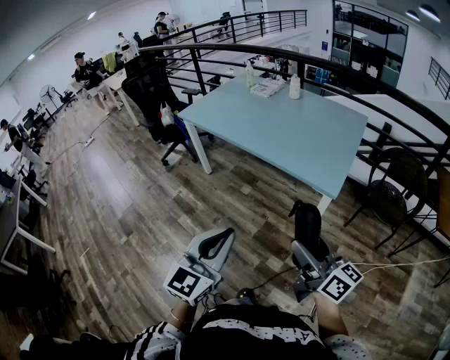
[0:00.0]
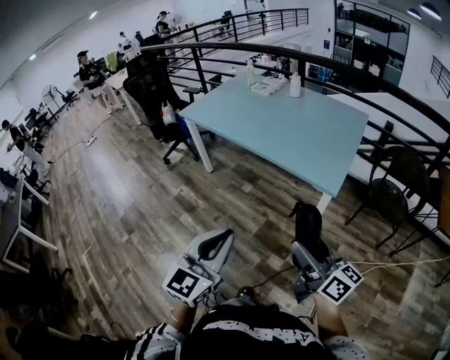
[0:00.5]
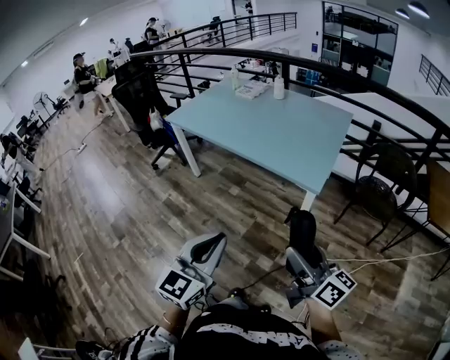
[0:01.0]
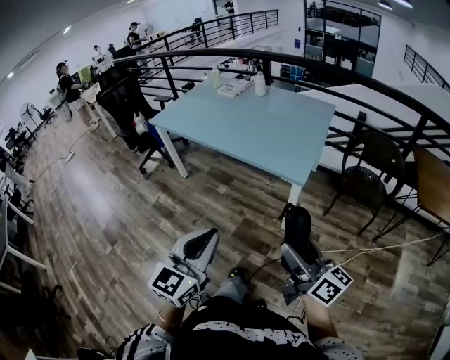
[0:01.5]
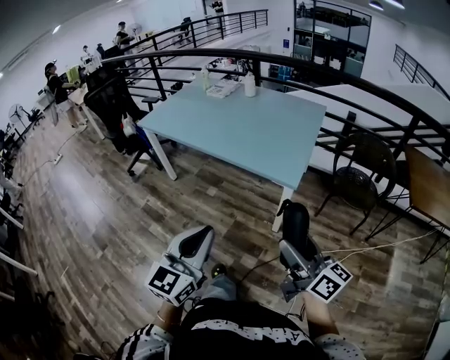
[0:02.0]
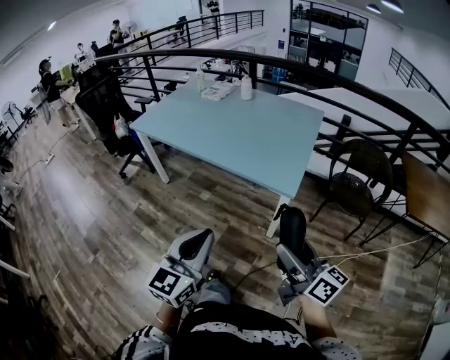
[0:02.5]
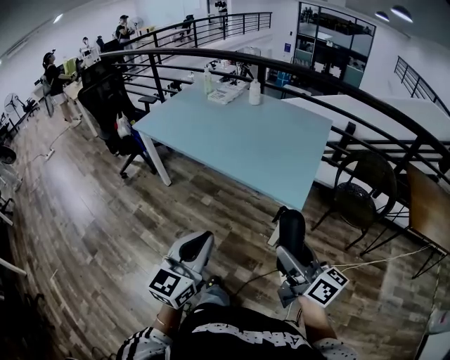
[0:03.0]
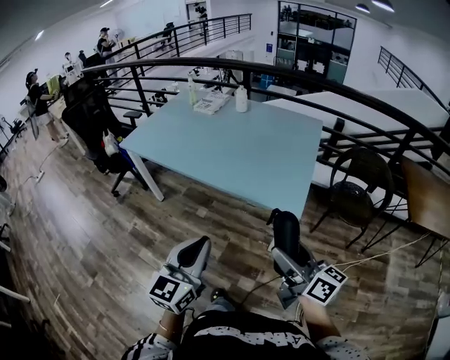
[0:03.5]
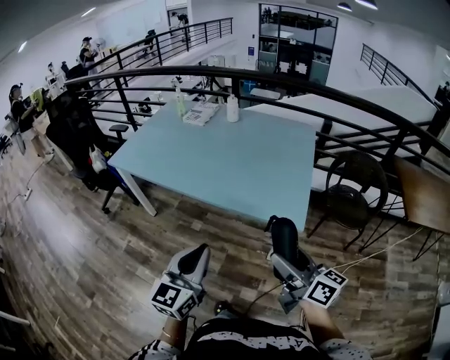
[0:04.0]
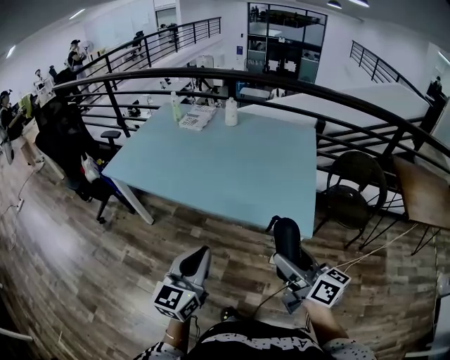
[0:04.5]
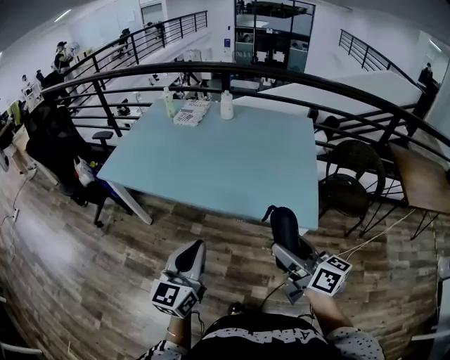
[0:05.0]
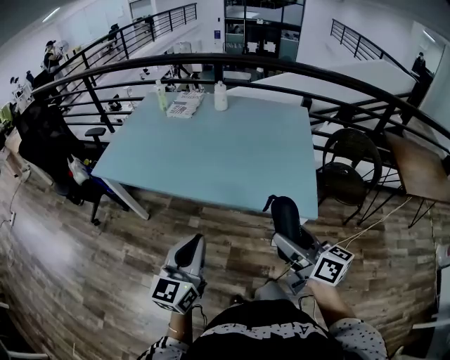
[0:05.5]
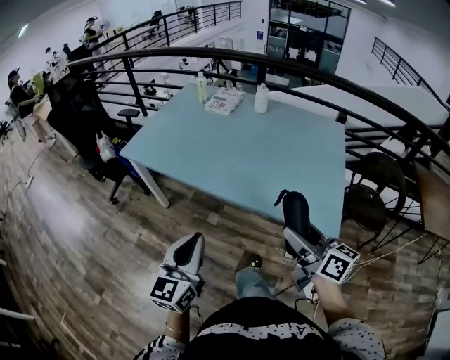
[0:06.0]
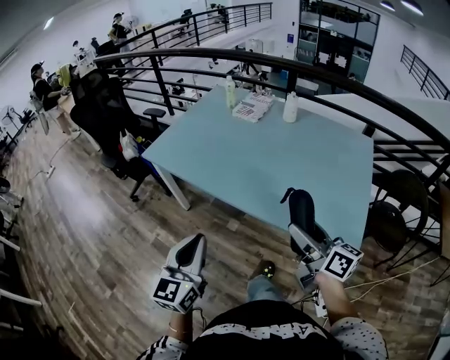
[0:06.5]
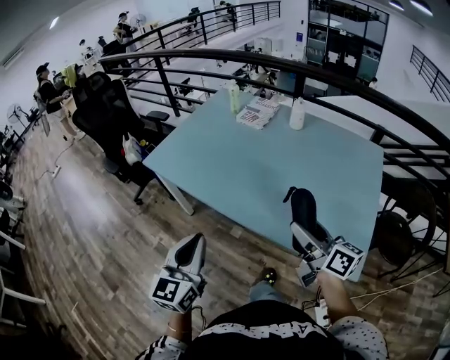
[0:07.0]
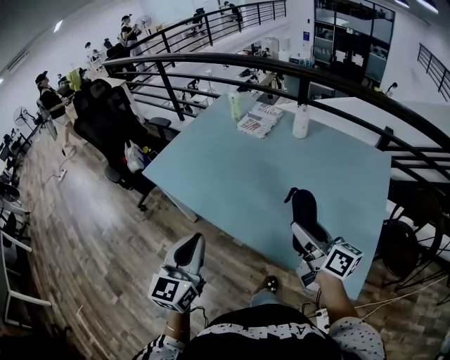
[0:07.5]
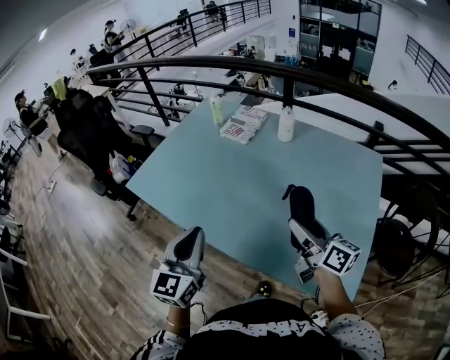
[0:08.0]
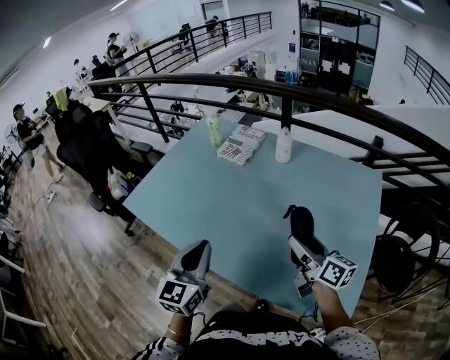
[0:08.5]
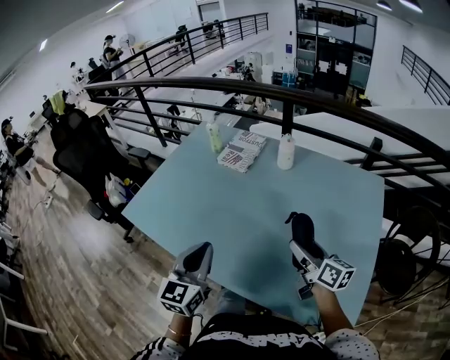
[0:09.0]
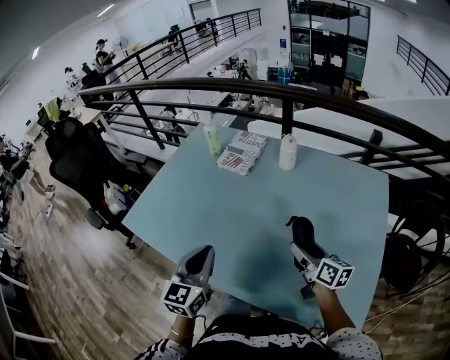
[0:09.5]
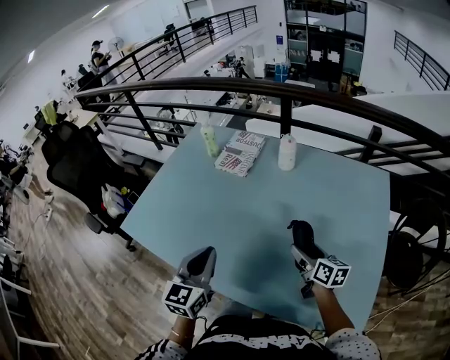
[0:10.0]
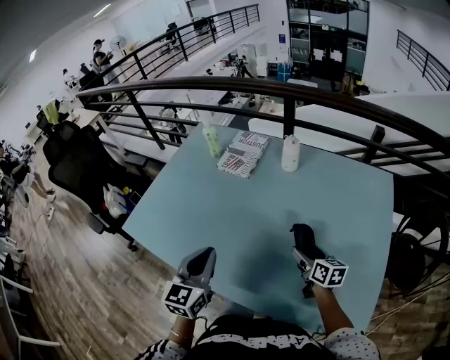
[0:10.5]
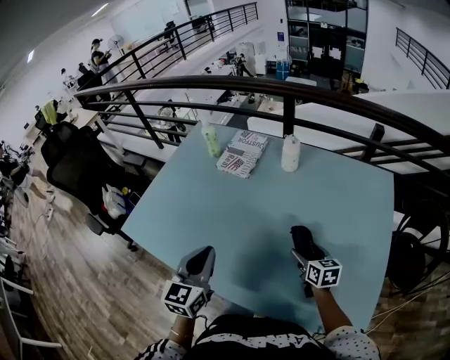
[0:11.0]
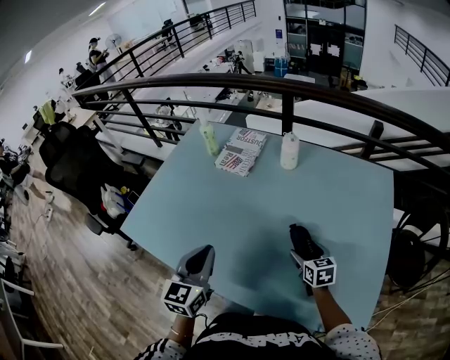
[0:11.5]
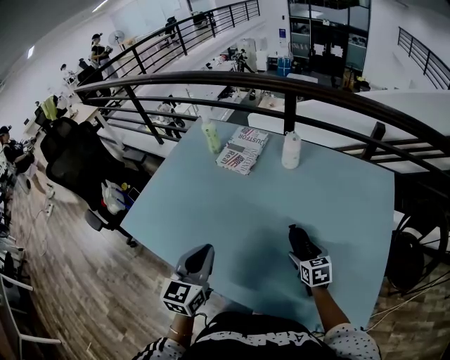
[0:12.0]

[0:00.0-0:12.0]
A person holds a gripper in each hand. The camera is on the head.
0:00.0 to 0:02.0: Both grippers move to the right, some 10 cm.
0:02.0 to 0:04.0: The right gripper goes roughly 25 cm forward and to the left. The left gripper moves forward, roughly 25 cm.
0:04.0 to 0:06.0: The left gripper is displaced to the left and forward by some 20 cm. The right gripper shifts some 20 cm forward and to the left.
0:06.0 to 0:08.0: The two grippers go about 30 cm forward.
0:08.0 to 0:10.0: The right gripper travels downward and forward by about 20 cm, and rotates some 20 degrees, while the left gripper heads forward, covering about 15 cm.
0:10.0 to 0:12.0: The right gripper goes some 10 cm downward, and rotates roughly 40 degrees.

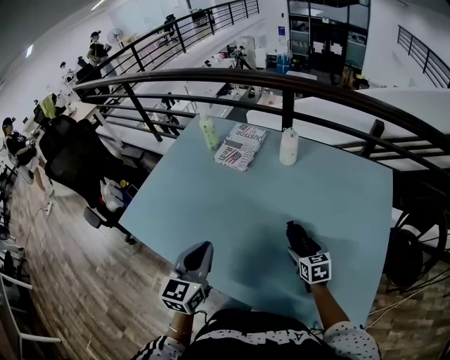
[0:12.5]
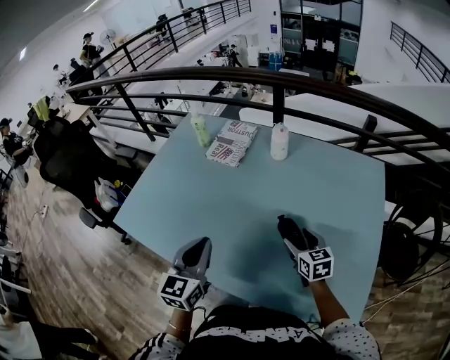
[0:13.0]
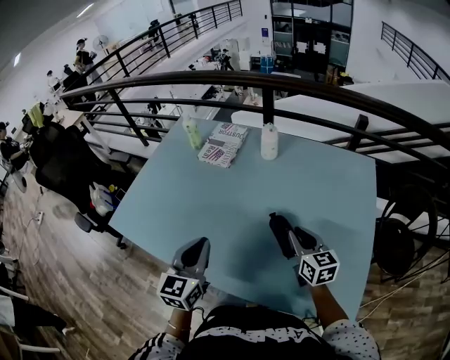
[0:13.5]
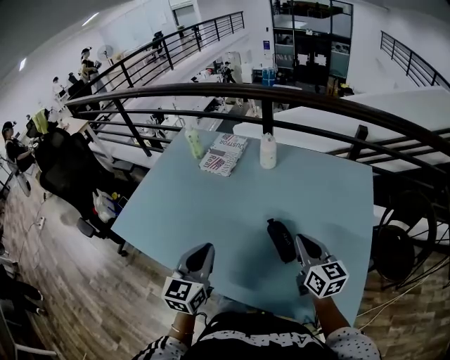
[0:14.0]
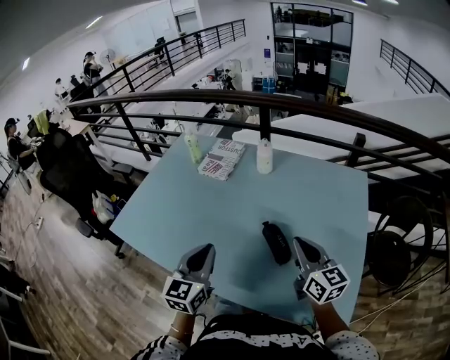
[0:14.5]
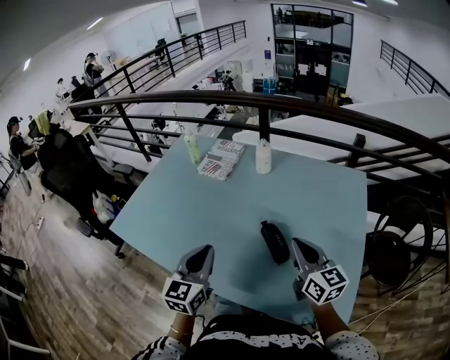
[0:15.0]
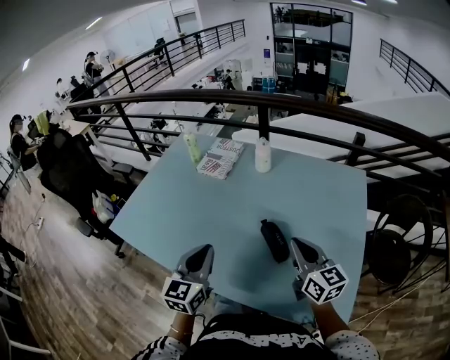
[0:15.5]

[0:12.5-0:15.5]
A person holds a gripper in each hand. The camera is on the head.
0:12.5 to 0:14.0: The left gripper moves to the right, some 5 cm, while the right gripper moves upward, about 20 cm, tilts its fingers roughly 30 degrees upward, and closes its fingers.
0:14.0 to 0:15.5: The right gripper moves some 5 cm.

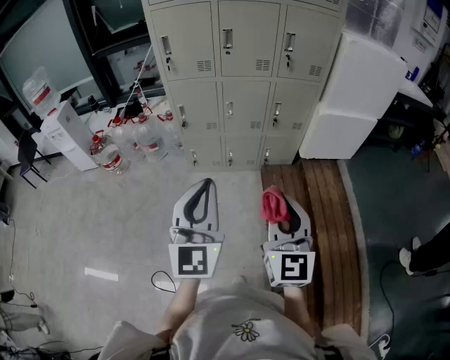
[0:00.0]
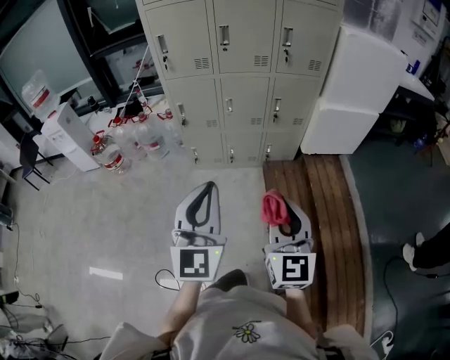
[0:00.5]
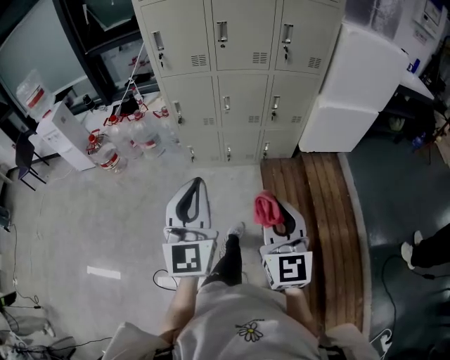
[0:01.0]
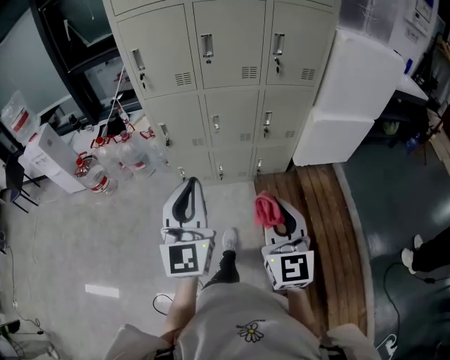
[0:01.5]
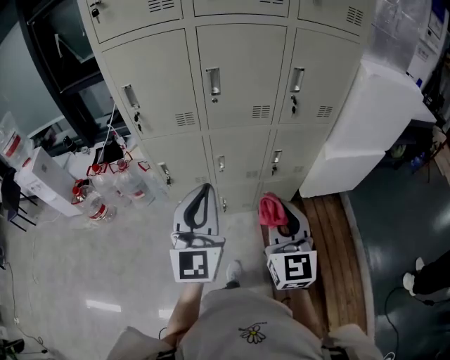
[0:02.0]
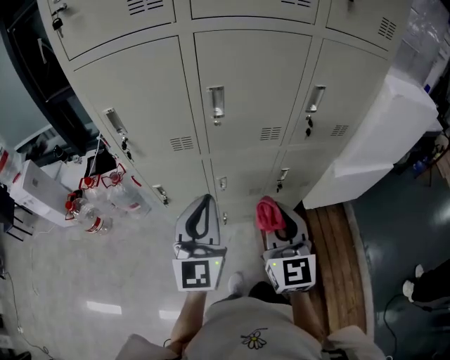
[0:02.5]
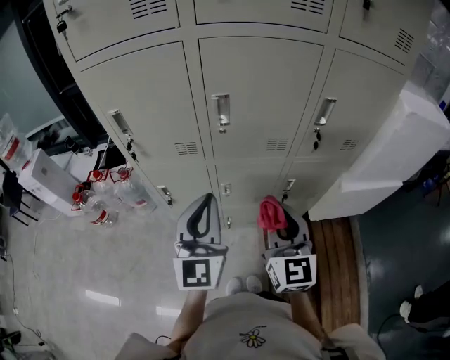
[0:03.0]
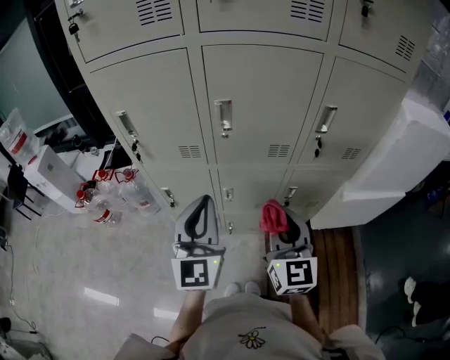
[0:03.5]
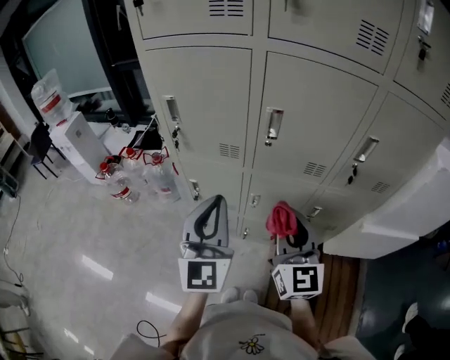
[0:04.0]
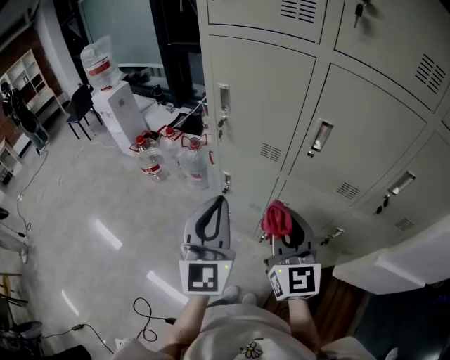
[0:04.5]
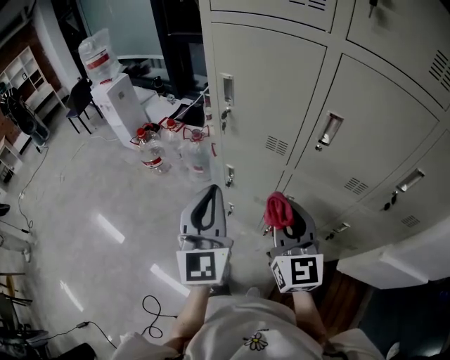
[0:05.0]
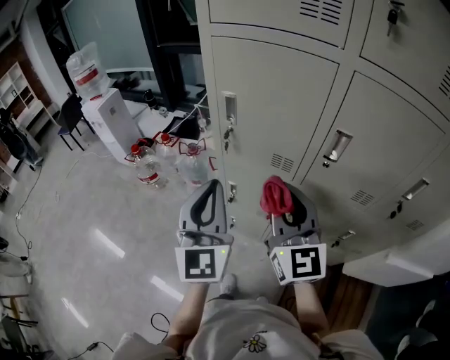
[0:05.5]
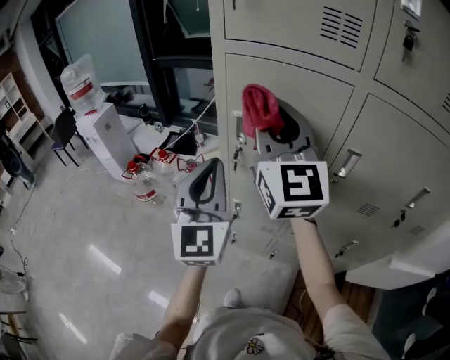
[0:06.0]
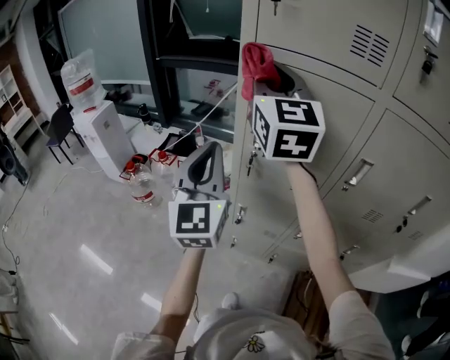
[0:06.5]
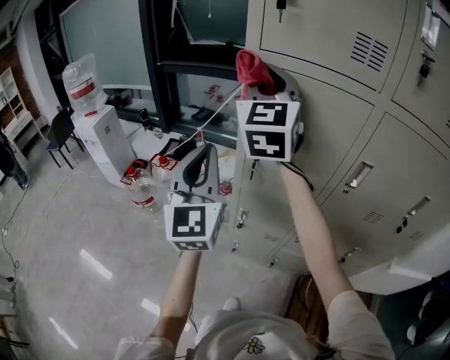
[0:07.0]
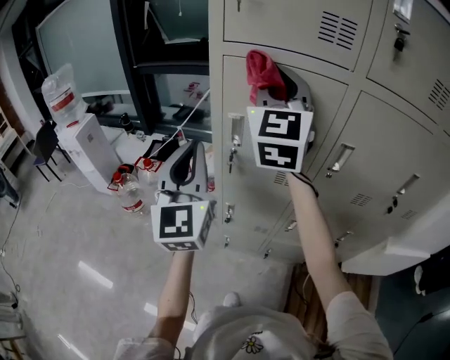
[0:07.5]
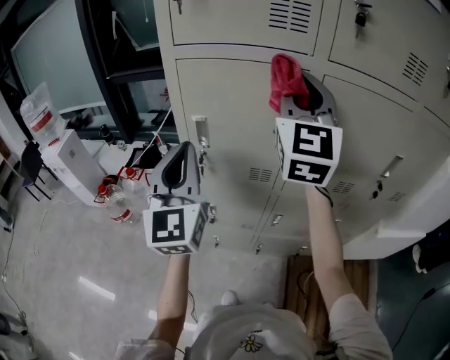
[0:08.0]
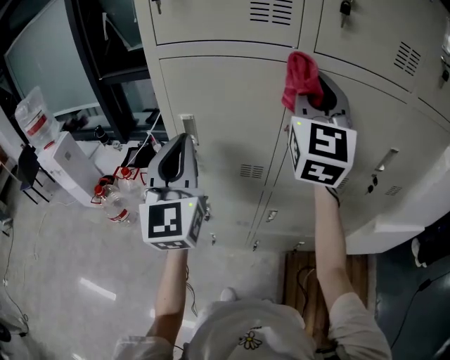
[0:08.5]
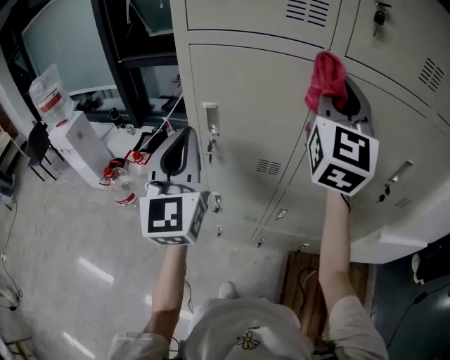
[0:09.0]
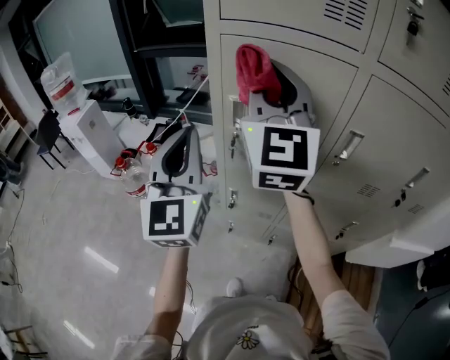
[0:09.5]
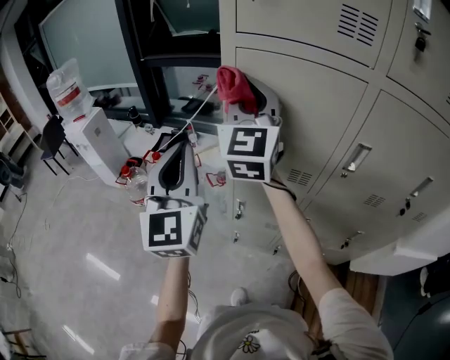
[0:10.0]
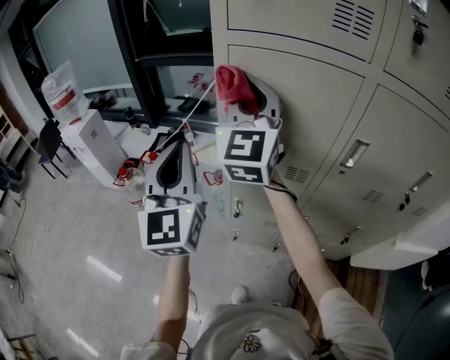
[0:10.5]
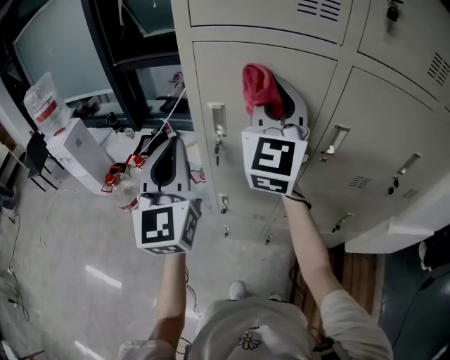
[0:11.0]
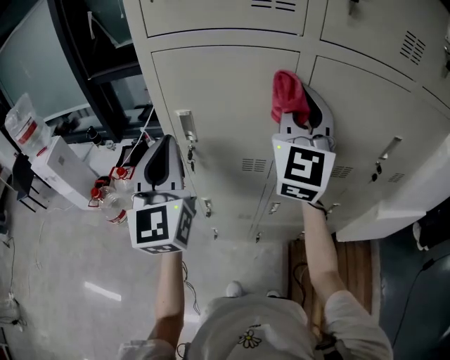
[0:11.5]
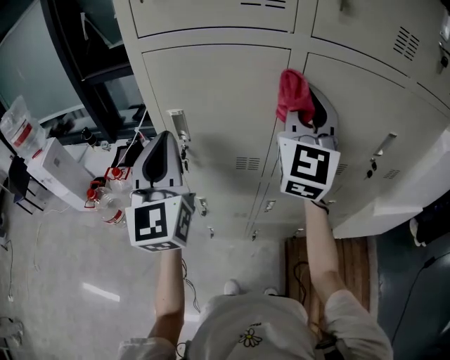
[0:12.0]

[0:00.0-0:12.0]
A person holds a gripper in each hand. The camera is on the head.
0:00.0 to 0:02.0: Both grippers travel together forward, roughly 35 cm.
0:02.0 to 0:04.0: Both grippers move forward, about 15 cm.
0:04.0 to 0:06.0: The left gripper travels forward and to the left by some 20 cm. Meanwhile the right gripper travels forward, upward and to the left by some 40 cm, and turns by about 20 degrees.
0:06.0 to 0:08.0: The right gripper goes roughly 15 cm to the right, and changes its angle by roughly 30 degrees. Meanwhile the left gripper goes to the left and returns, some 10 cm each way.
0:08.0 to 0:10.0: The left gripper moves to the left, roughly 10 cm. The right gripper goes some 20 cm to the left.
0:10.0 to 0:12.0: The right gripper goes about 25 cm to the right, and swivels roughly 20 degrees. Meanwhile the left gripper goes approximately 10 cm to the right.
